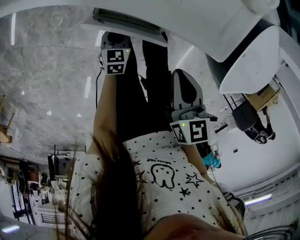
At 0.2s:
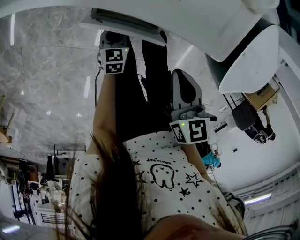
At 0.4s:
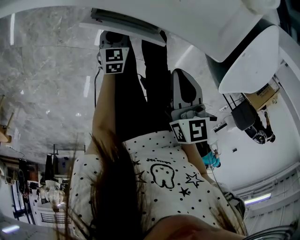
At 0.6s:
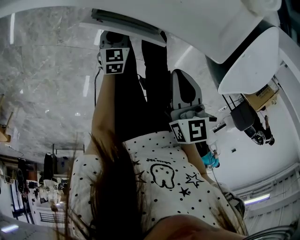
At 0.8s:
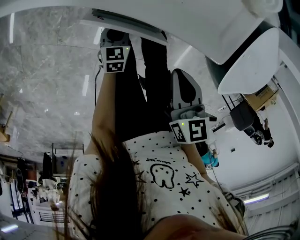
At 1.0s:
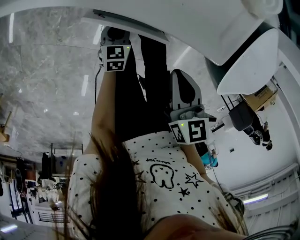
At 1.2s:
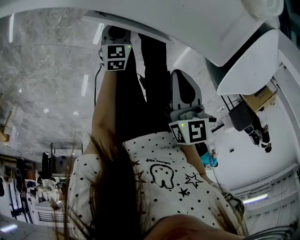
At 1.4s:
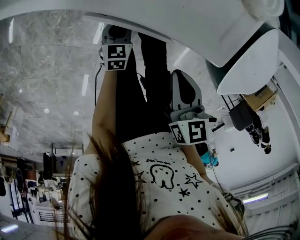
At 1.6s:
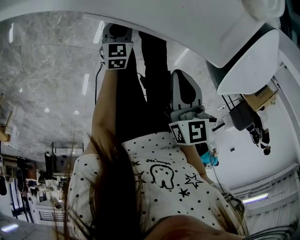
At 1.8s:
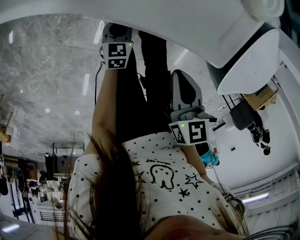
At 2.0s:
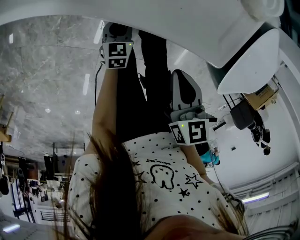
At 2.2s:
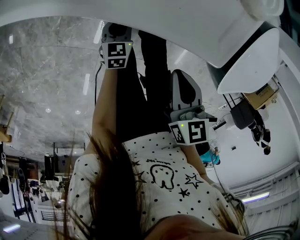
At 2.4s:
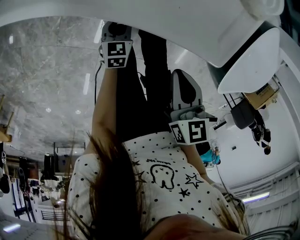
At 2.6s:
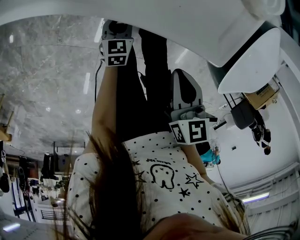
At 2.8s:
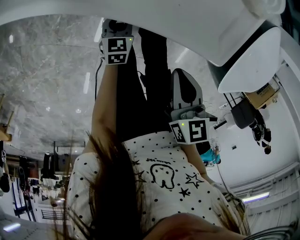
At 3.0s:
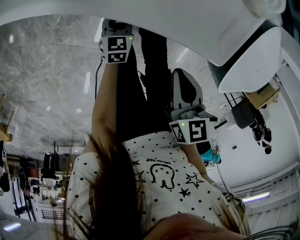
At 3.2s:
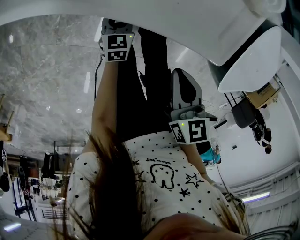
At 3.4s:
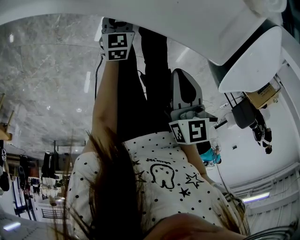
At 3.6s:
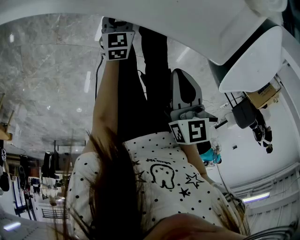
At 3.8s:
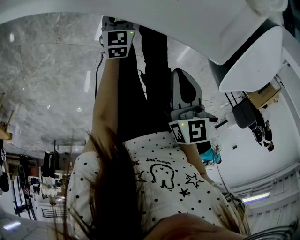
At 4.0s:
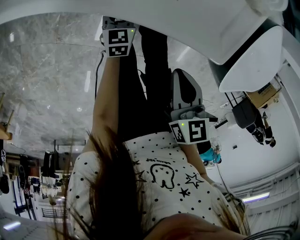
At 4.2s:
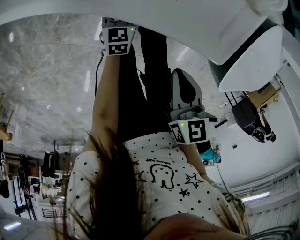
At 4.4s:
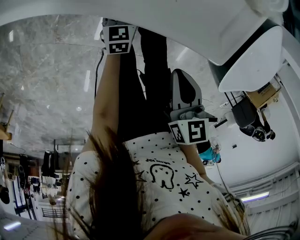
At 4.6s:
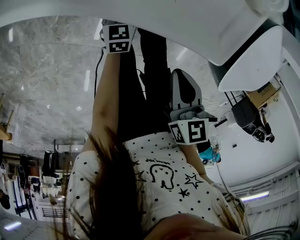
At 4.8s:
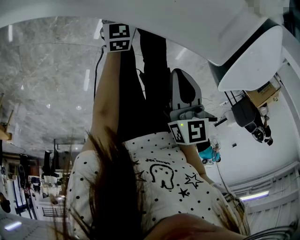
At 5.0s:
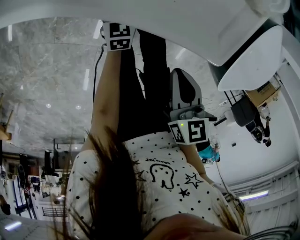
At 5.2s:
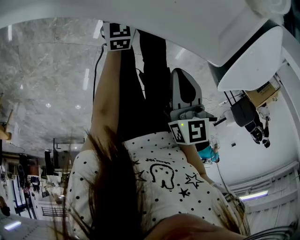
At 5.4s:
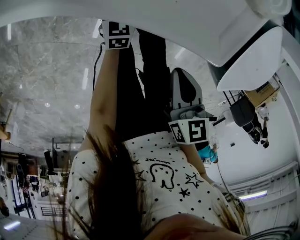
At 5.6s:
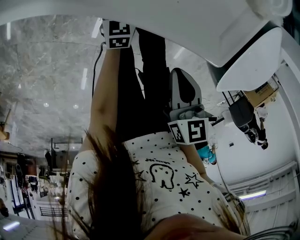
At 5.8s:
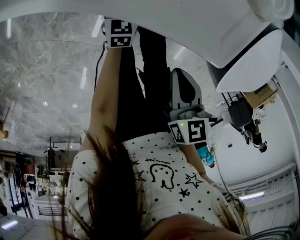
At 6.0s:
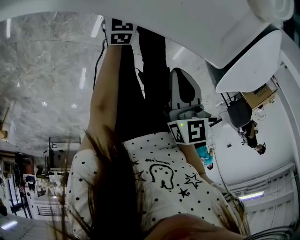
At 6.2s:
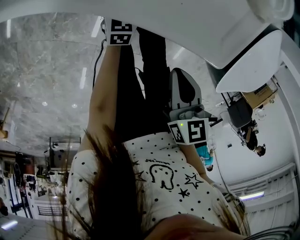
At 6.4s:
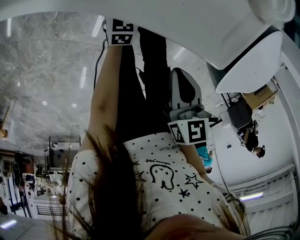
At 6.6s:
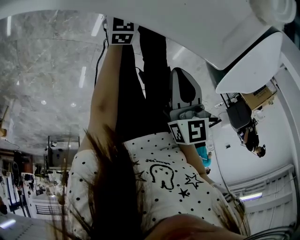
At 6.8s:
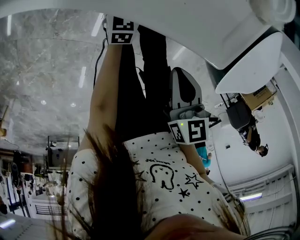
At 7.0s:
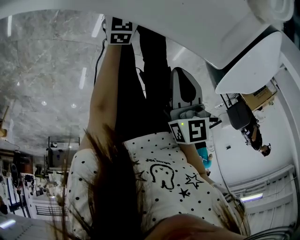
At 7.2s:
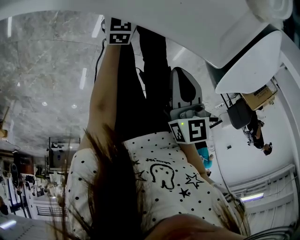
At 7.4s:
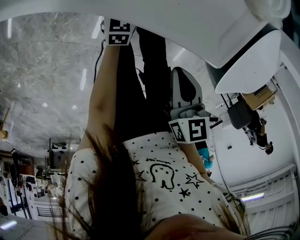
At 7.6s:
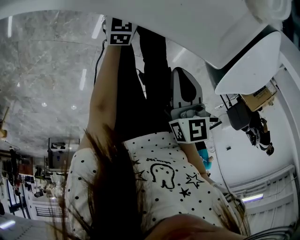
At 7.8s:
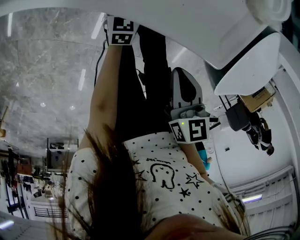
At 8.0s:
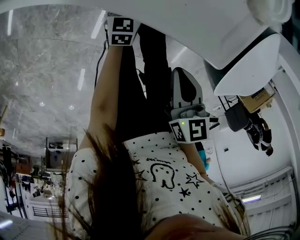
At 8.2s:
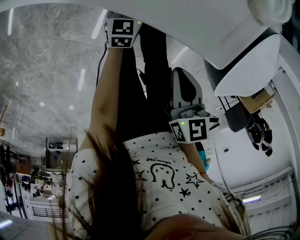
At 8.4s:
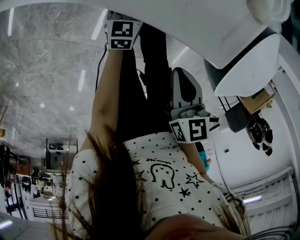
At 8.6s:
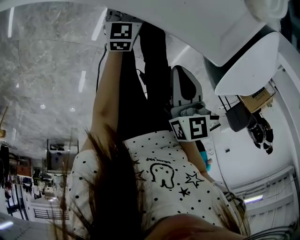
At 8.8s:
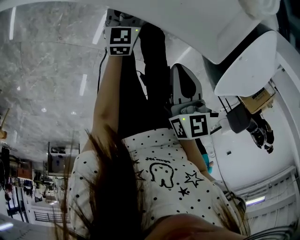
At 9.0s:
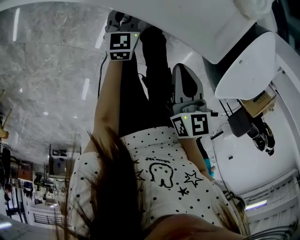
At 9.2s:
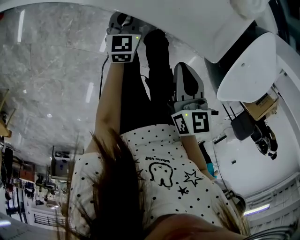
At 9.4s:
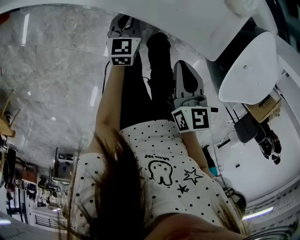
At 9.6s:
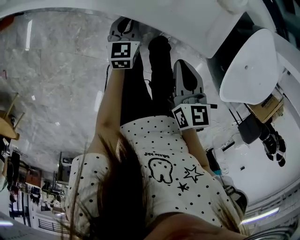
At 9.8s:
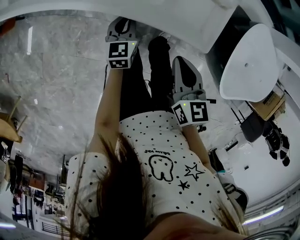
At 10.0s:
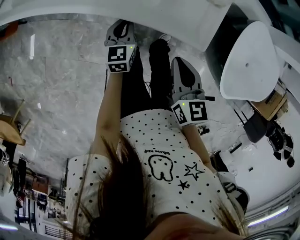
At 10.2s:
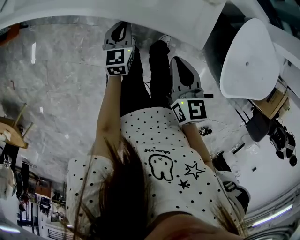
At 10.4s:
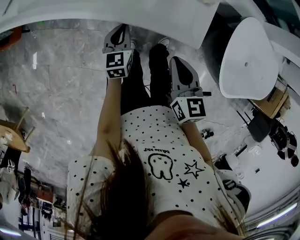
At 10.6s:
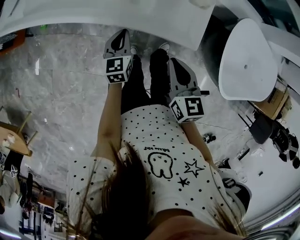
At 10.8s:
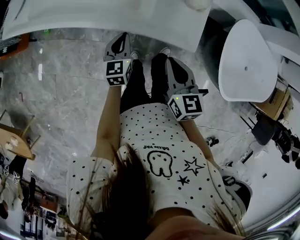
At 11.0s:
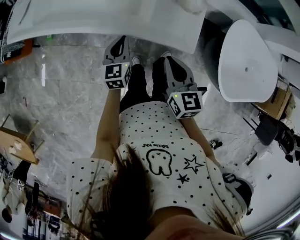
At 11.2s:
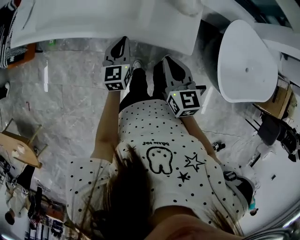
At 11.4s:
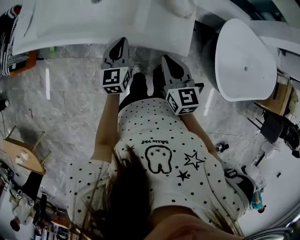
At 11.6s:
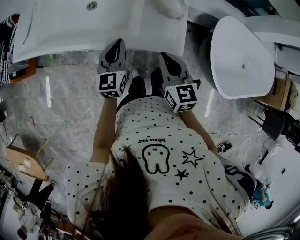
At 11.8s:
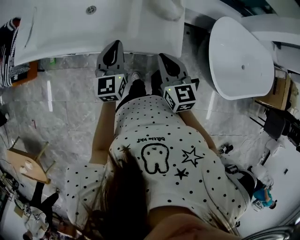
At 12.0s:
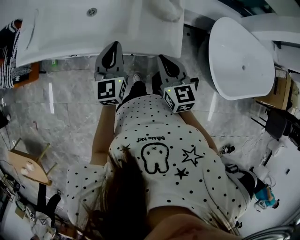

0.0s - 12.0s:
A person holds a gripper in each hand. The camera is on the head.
0.0s - 1.6s: The grippers move only a little.
1.6s - 3.0s: The grippers move only a little.
3.0s - 4.4s: The grippers stay close to where they were, moving slightly.
4.4s - 6.0s: The grippers move only a little.
6.0s - 7.6s: Both grippers stay about where they are.
7.6s - 9.0s: The left gripper is displaced upward by about 10 cm, and closes.
9.0s - 10.4s: The right gripper travels upward by approximately 10 cm; the left gripper heads upward, covering approximately 15 cm.
10.4s - 12.0s: The right gripper travels upward by some 10 cm, while the left gripper moves upward, about 25 cm, and changes its angle by some 20 degrees.

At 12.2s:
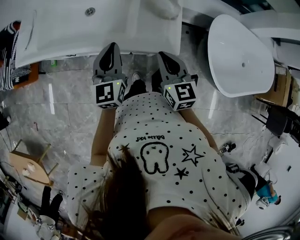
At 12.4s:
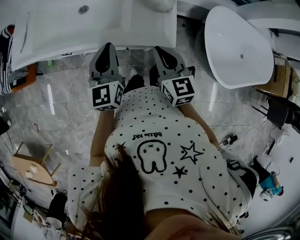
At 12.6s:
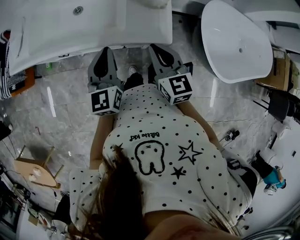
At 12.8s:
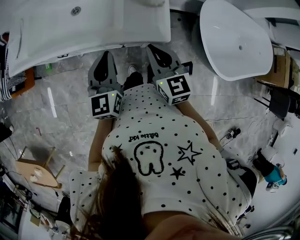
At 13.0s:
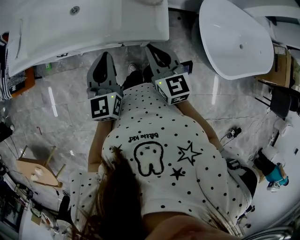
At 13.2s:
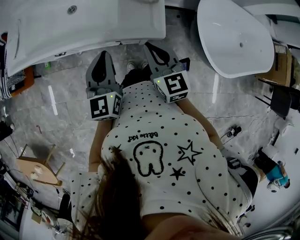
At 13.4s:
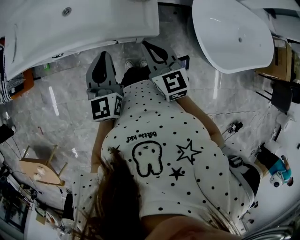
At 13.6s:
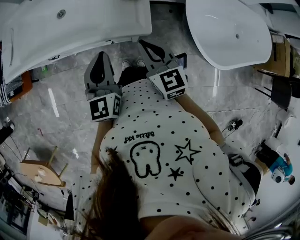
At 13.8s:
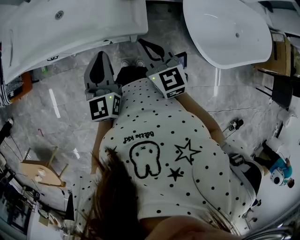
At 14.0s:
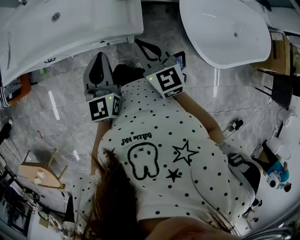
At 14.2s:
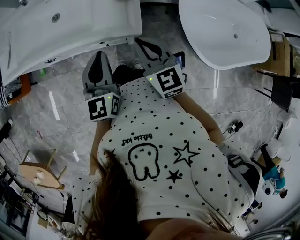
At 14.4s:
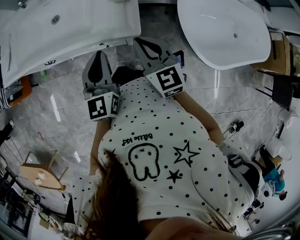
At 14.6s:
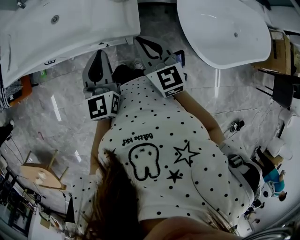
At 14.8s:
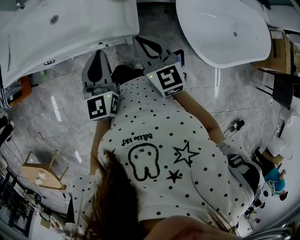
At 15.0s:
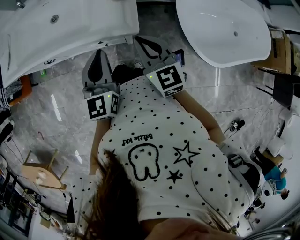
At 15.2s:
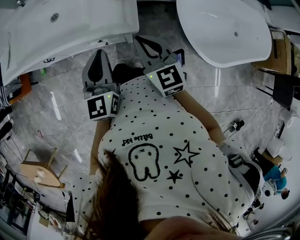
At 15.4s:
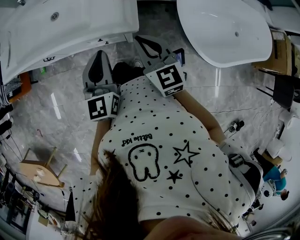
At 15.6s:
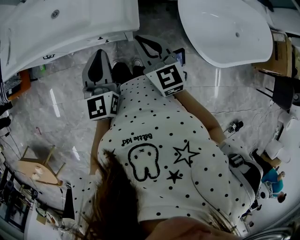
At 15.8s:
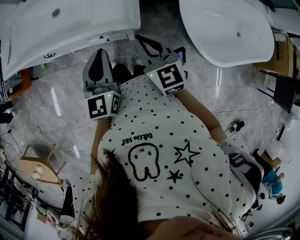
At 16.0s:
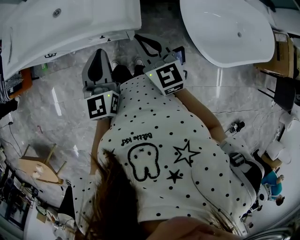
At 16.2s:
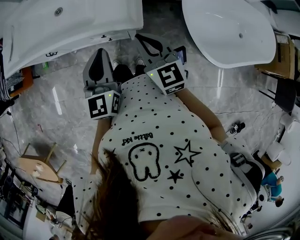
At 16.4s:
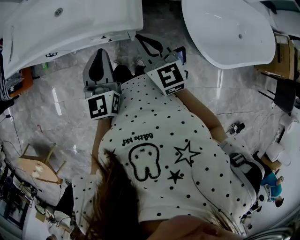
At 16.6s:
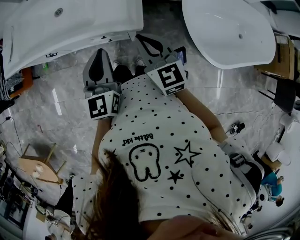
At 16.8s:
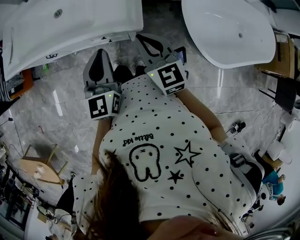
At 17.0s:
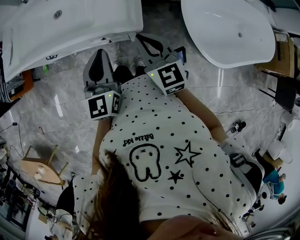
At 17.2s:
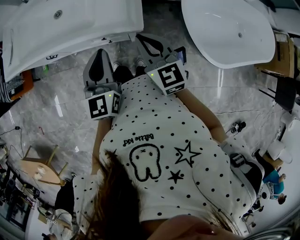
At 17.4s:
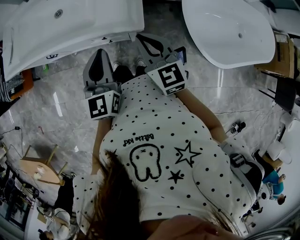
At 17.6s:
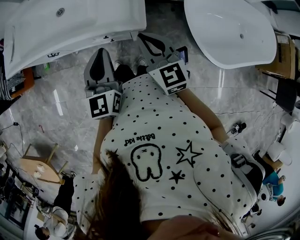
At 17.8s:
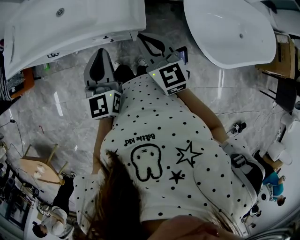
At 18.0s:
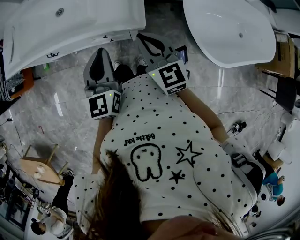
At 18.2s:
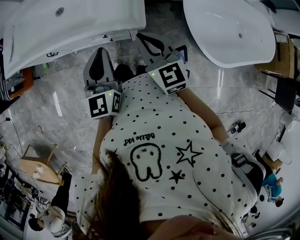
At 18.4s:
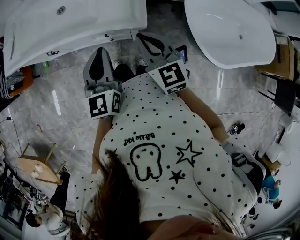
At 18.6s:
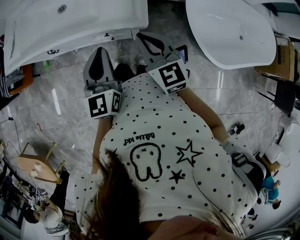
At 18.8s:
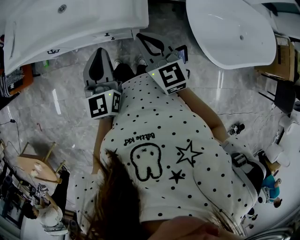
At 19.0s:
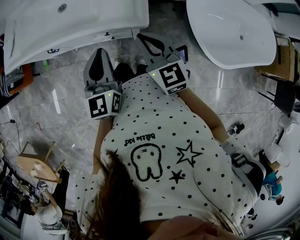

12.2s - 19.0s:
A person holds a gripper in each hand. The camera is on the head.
12.2s - 13.6s: The right gripper shifts approximately 5 cm to the right. The left gripper shifts about 10 cm backward and to the right.
13.6s - 15.0s: The left gripper moves about 5 cm.
15.0s - 16.2s: There are only small adjustments of the grippers.
16.2s - 19.0s: Both grippers stay put.

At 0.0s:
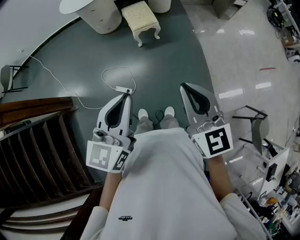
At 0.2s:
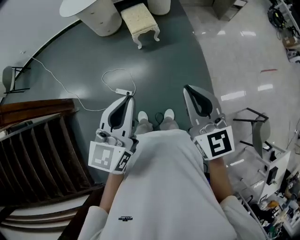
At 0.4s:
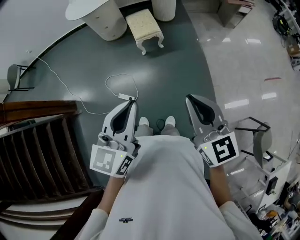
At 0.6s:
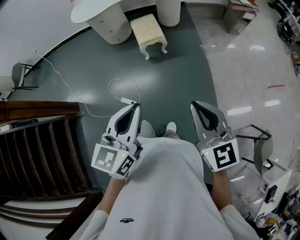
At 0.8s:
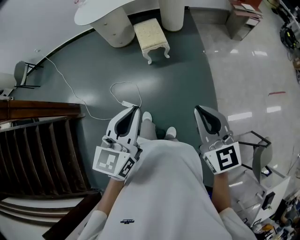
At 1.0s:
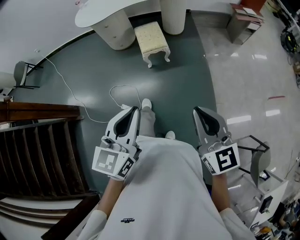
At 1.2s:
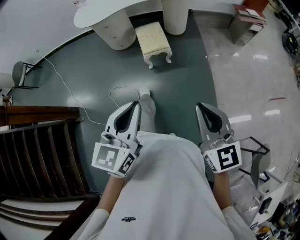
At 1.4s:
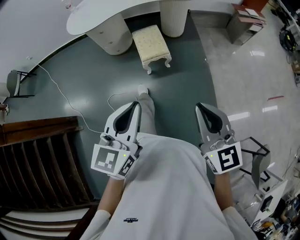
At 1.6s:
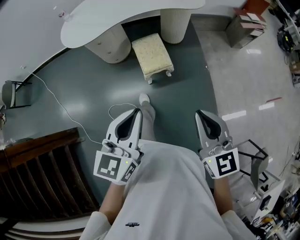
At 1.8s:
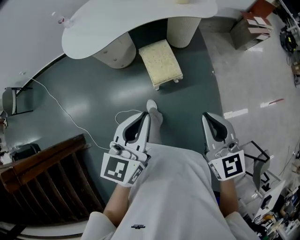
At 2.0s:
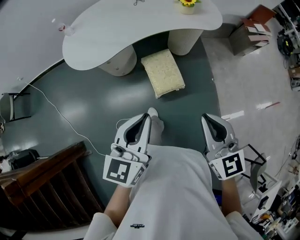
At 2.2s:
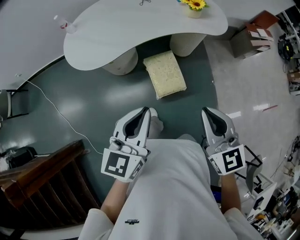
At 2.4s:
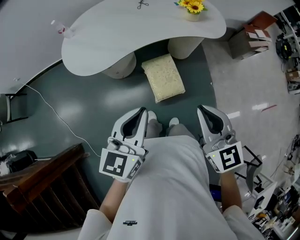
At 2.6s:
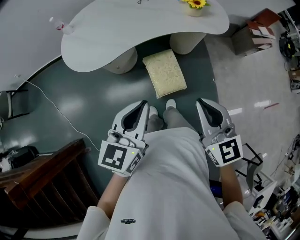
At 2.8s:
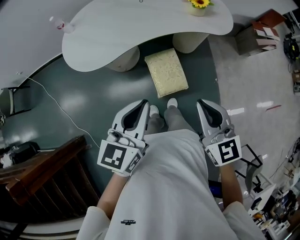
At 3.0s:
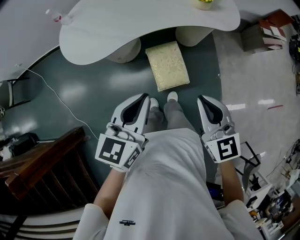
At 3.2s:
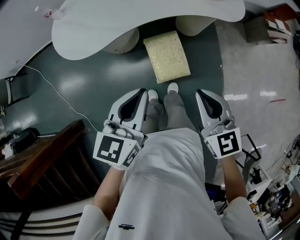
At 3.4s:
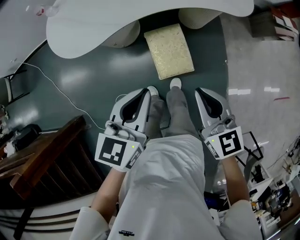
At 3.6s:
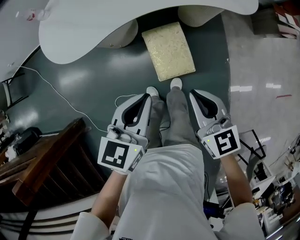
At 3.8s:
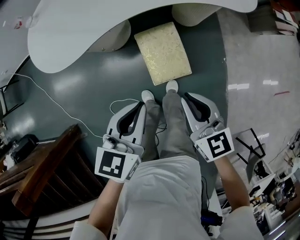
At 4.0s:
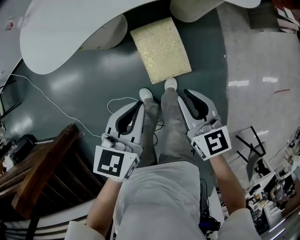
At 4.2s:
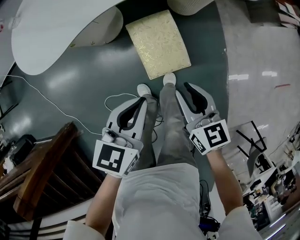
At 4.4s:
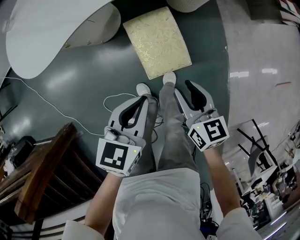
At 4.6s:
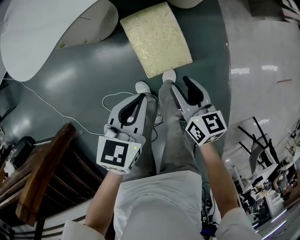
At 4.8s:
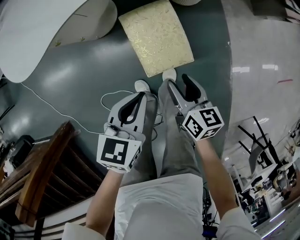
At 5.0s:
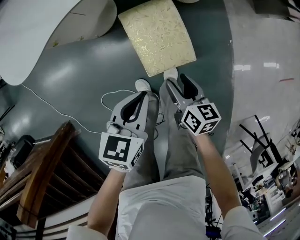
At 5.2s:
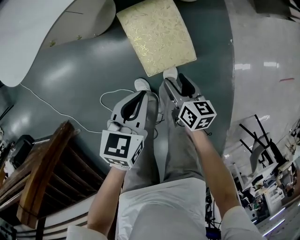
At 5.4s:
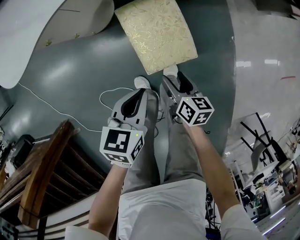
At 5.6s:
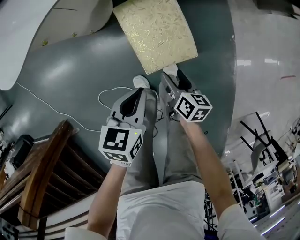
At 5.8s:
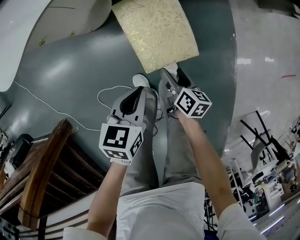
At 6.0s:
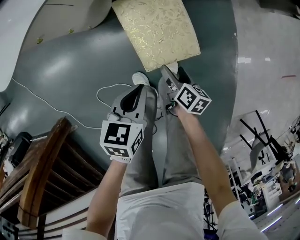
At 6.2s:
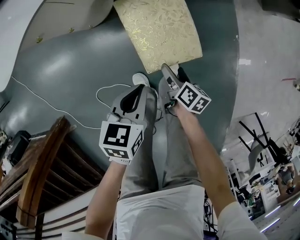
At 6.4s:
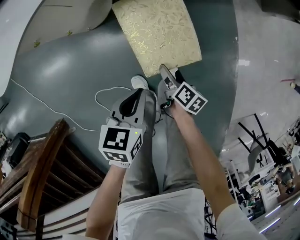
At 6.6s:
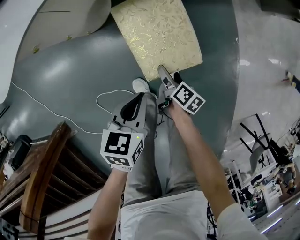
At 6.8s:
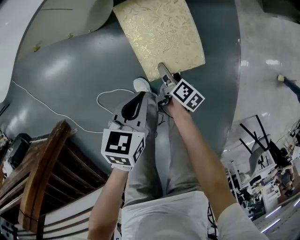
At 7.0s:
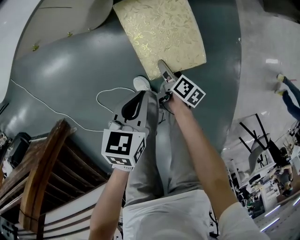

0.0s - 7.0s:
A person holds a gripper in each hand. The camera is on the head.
0.0s - 1.4s: The grippers both shift forward by approximately 20 cm.
1.4s - 2.8s: The two grippers travel together, forward, roughly 40 cm.
2.8s - 4.2s: Both grippers move downward, roughly 25 cm. The right gripper swivels some 20 degrees.
4.2s - 5.6s: The grippers both shift downward by approximately 25 cm. The right gripper turns by approximately 40 degrees, and opens.
5.6s - 7.0s: The right gripper moves downward, some 10 cm, and rotates approximately 30 degrees. The left gripper moves roughly 5 cm.
